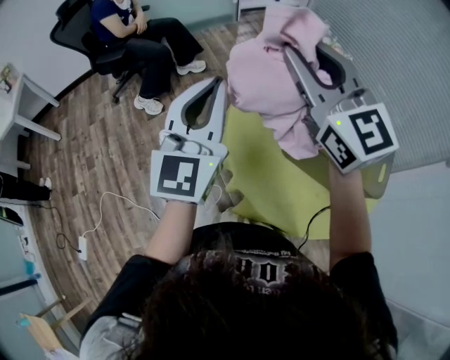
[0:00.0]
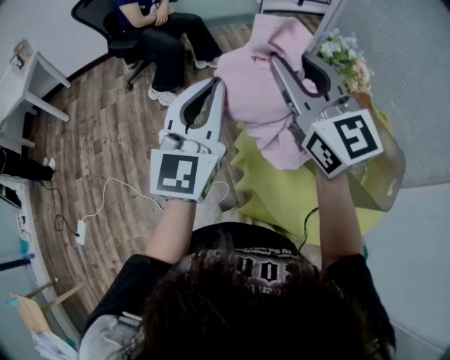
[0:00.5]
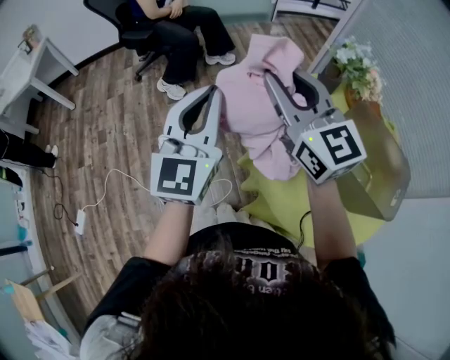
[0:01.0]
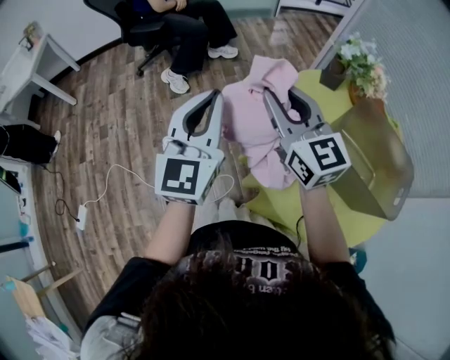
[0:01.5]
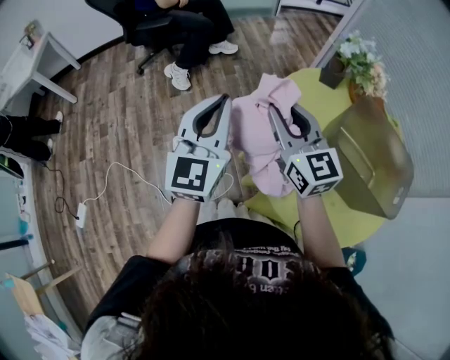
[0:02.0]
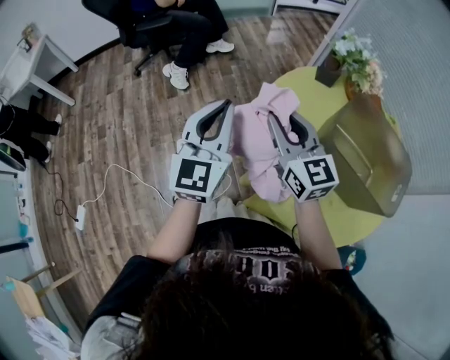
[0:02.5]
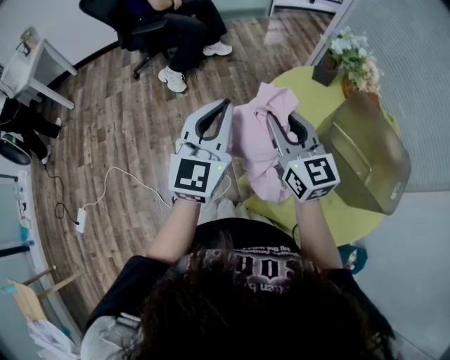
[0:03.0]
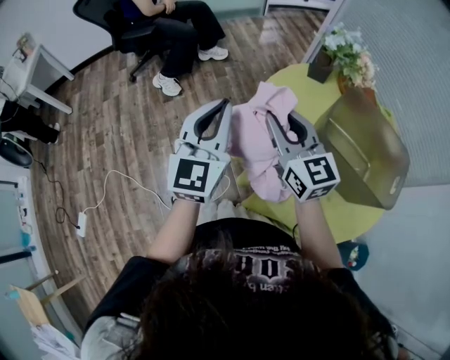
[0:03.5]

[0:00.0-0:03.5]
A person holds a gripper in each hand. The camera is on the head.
0:00.0 to 0:02.0: The left gripper goes about 15 cm downward and to the left. The right gripper goes approximately 20 cm downward and to the left.
0:02.0 to 0:03.5: There are only small adjustments of the grippers.

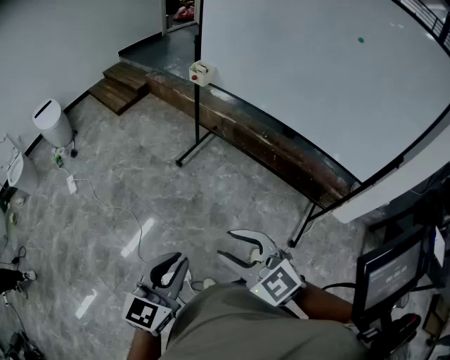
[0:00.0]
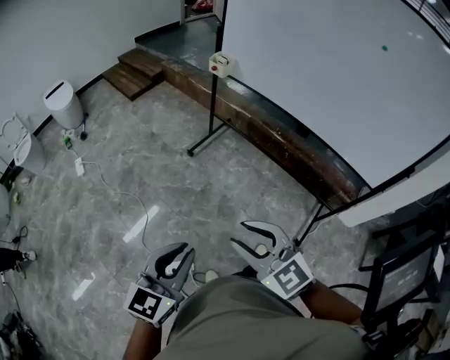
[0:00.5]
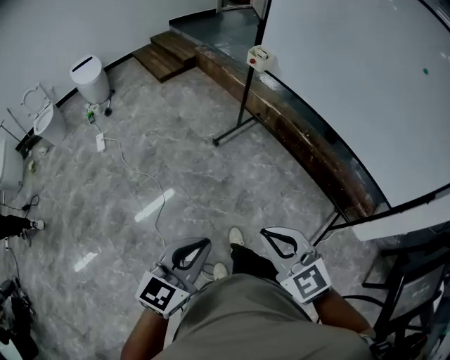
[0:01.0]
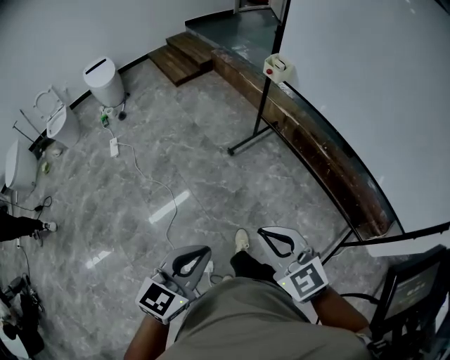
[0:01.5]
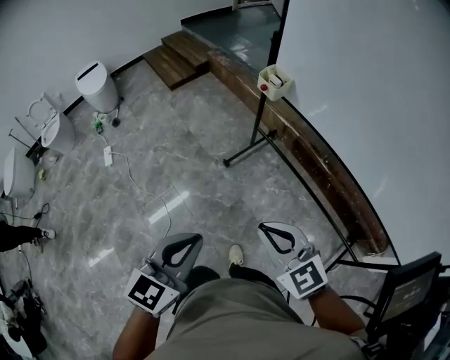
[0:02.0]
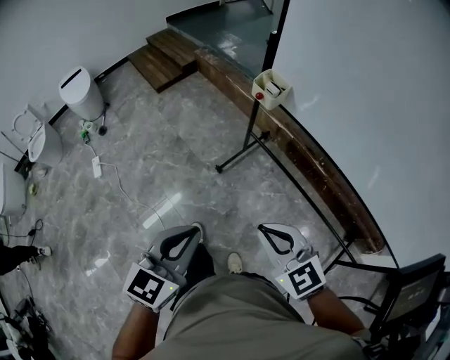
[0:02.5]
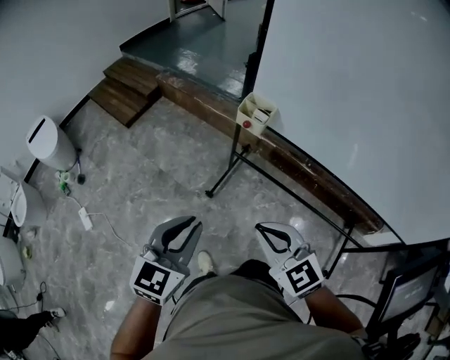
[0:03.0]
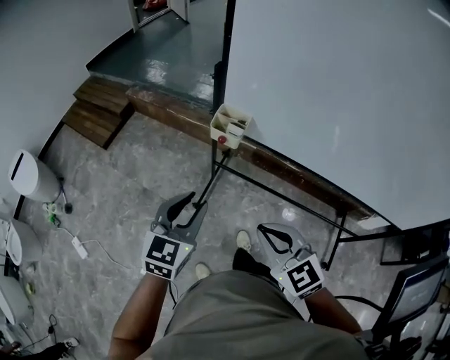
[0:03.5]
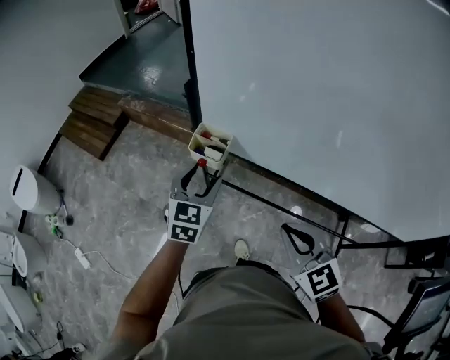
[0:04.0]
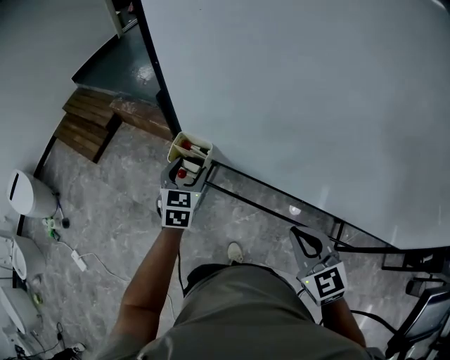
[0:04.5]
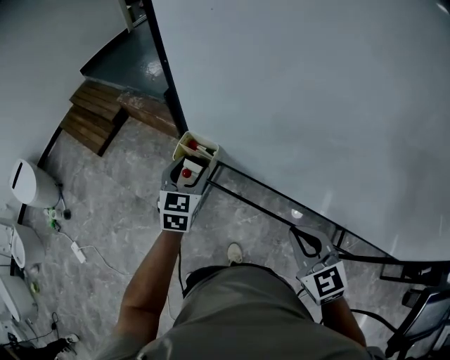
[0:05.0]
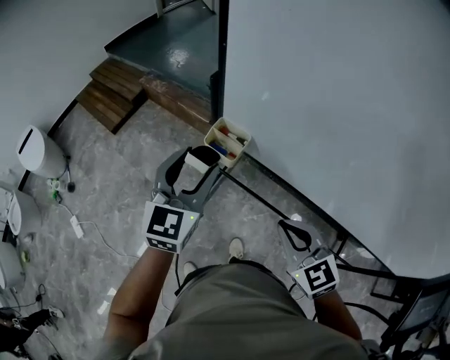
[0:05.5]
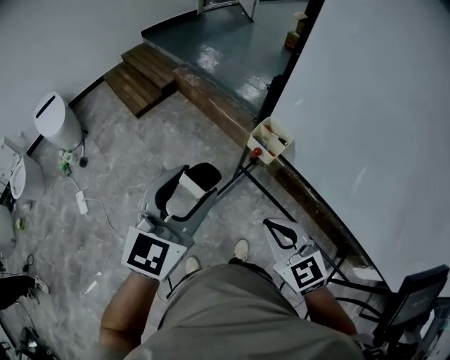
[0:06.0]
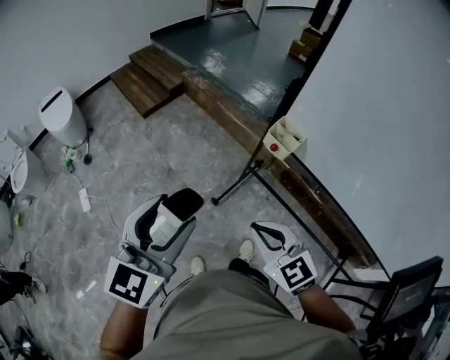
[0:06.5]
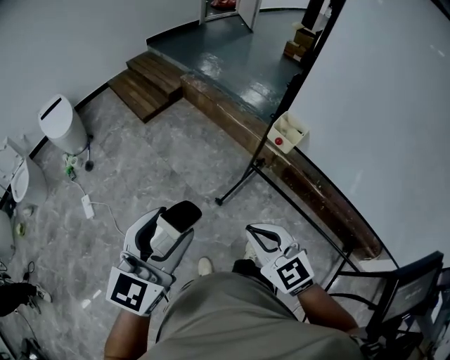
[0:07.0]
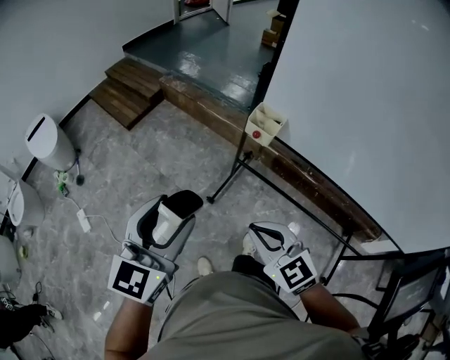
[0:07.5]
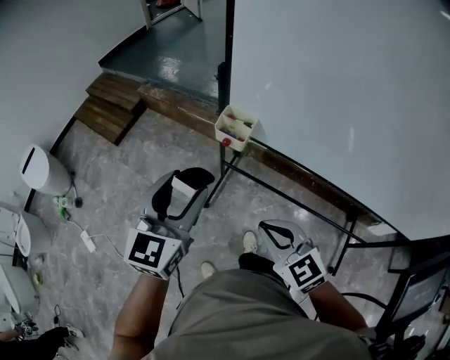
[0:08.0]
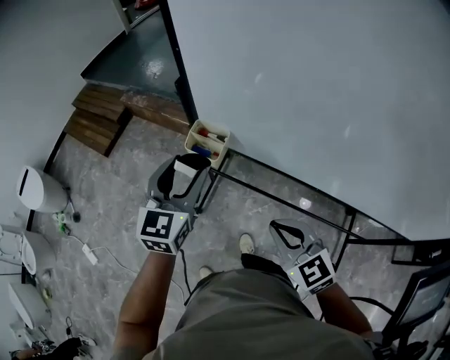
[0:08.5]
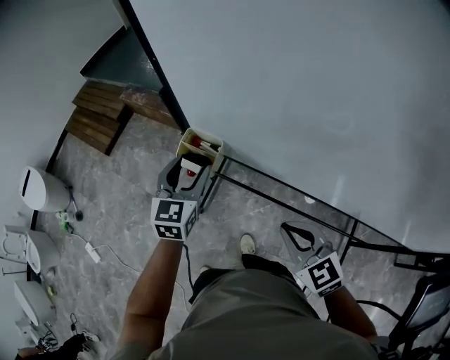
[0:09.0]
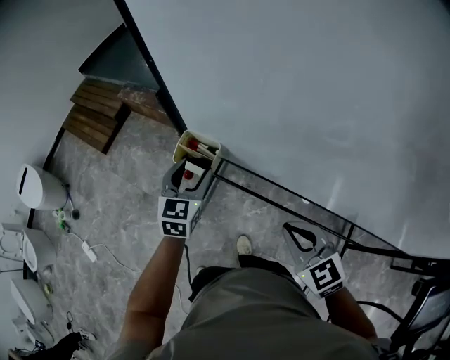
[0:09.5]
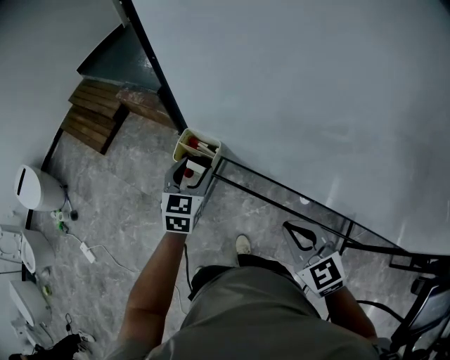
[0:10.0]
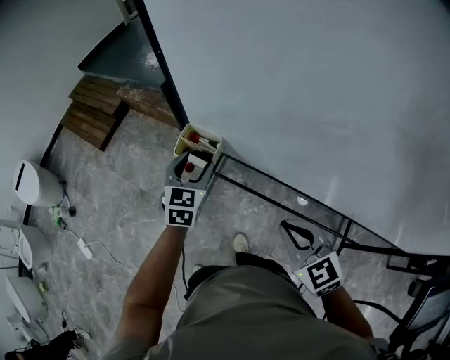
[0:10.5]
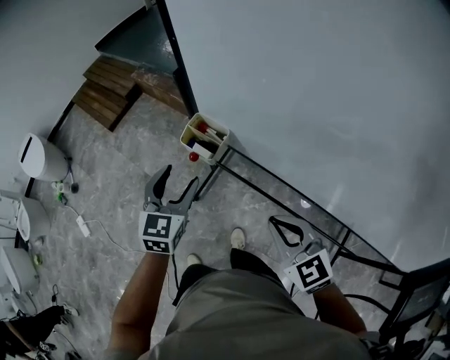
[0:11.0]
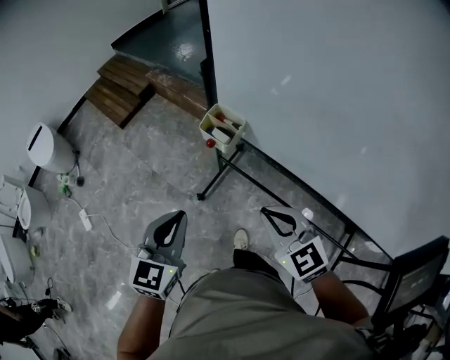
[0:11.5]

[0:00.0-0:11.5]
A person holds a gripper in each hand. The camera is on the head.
0:00.0 to 0:02.0: Both grippers travel together forward, some 30 cm. The right gripper closes up.
0:02.0 to 0:04.0: The left gripper shifts by about 60 cm, and opens up. The right gripper changes place by approximately 35 cm, and rotates roughly 40 degrees.
0:04.0 to 0:06.0: The right gripper is displaced to the left by some 15 cm, and swivels about 20 degrees; the left gripper travels to the left, upward and backward by roughly 25 cm.
0:06.0 to 0:07.5: The left gripper travels backward and to the left by about 15 cm. The right gripper heads to the left and backward, covering approximately 10 cm.
0:07.5 to 0:09.5: The right gripper travels to the right and forward by about 35 cm; the left gripper heads forward, to the right and downward, covering roughly 50 cm.
0:09.5 to 0:11.5: The right gripper moves to the left, about 10 cm; the left gripper moves backward and to the left, roughly 25 cm, and closes up.

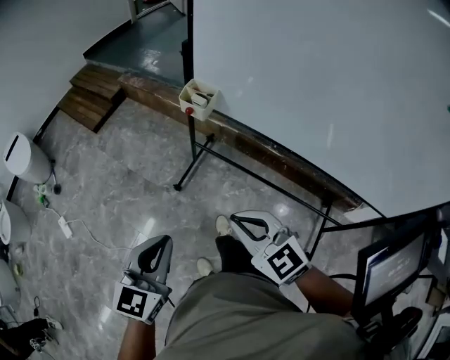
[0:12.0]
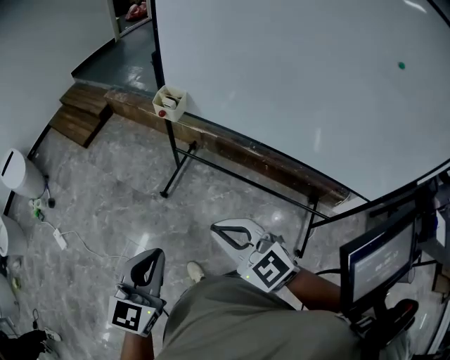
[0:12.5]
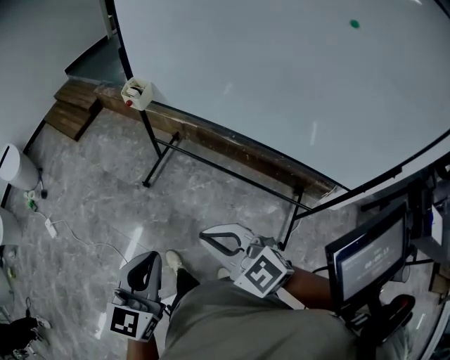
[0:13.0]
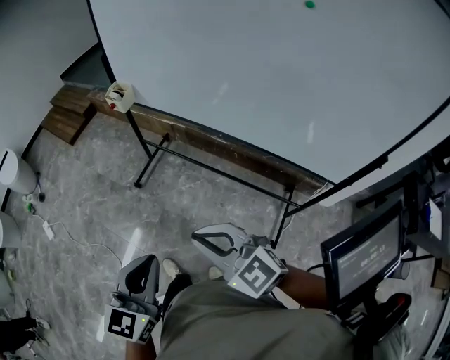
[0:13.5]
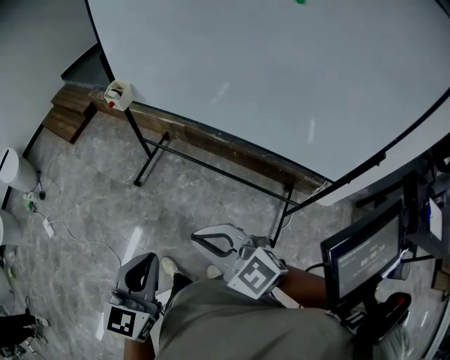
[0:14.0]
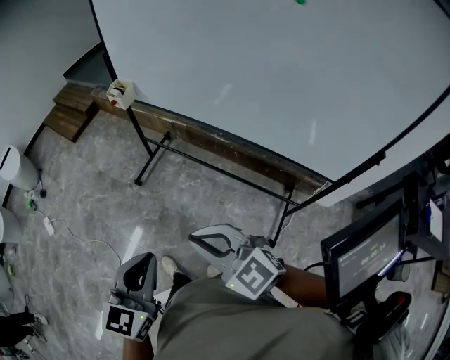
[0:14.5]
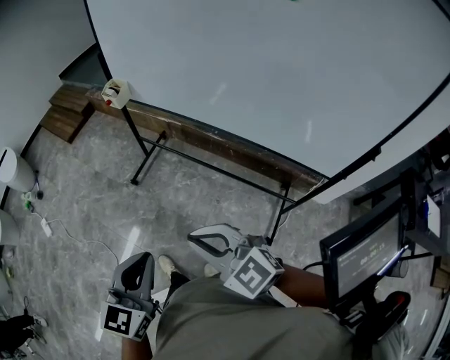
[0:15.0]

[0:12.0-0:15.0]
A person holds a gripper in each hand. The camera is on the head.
0:12.0 to 0:13.5: The two grippers go some 35 cm backward and to the right.
0:13.5 to 0:15.0: There are only small adjustments of the grippers.

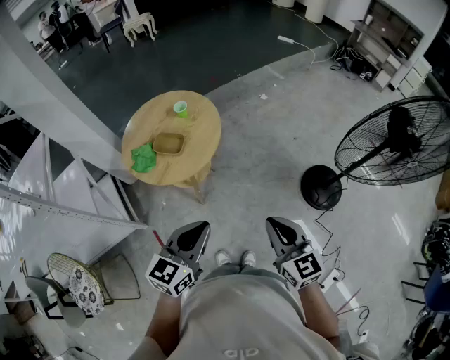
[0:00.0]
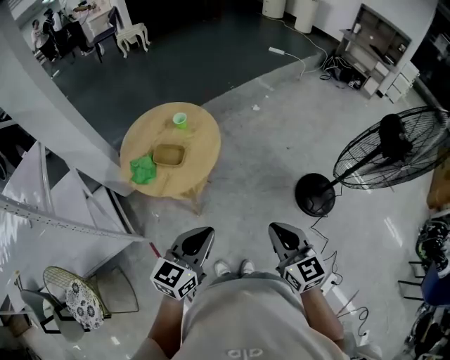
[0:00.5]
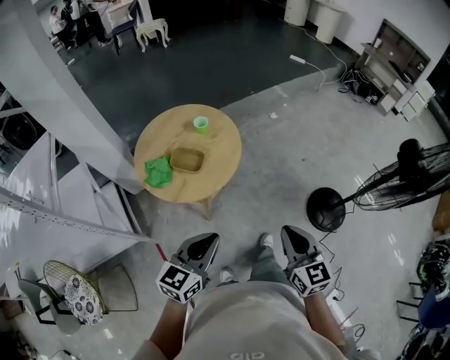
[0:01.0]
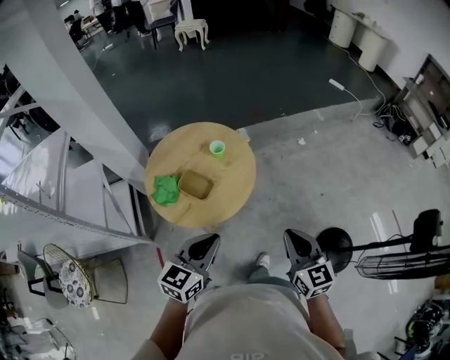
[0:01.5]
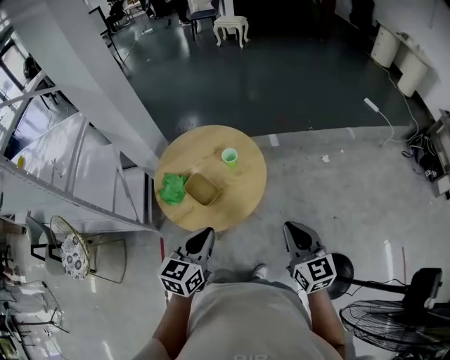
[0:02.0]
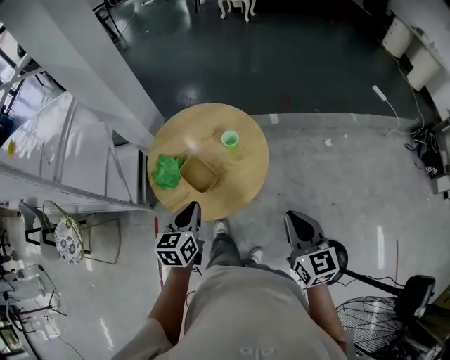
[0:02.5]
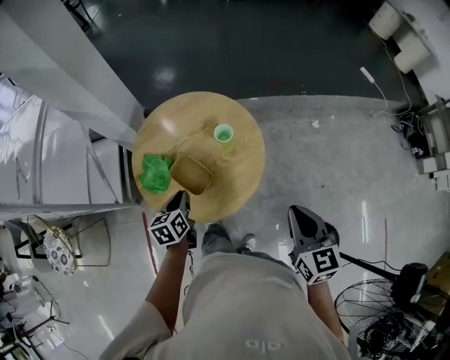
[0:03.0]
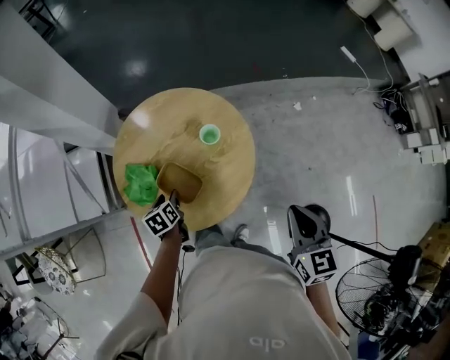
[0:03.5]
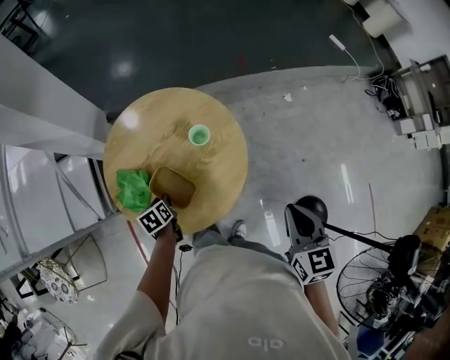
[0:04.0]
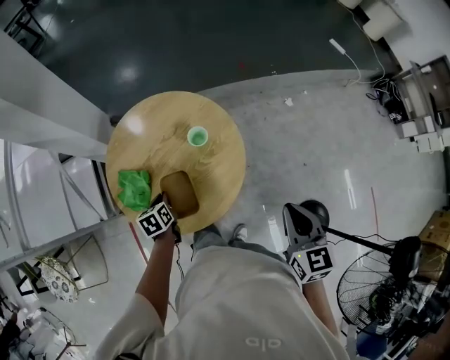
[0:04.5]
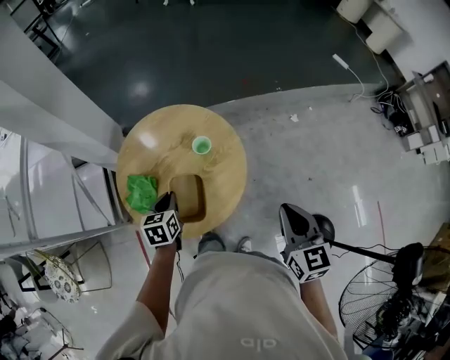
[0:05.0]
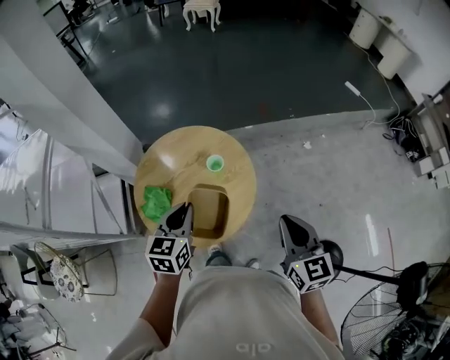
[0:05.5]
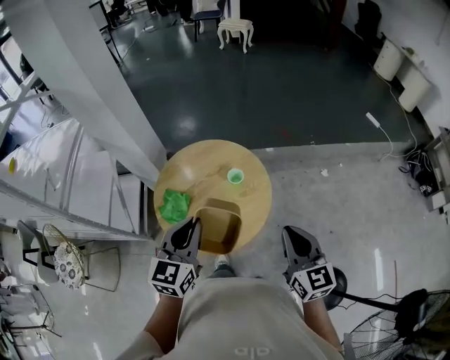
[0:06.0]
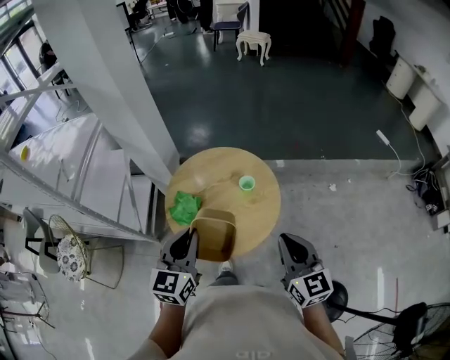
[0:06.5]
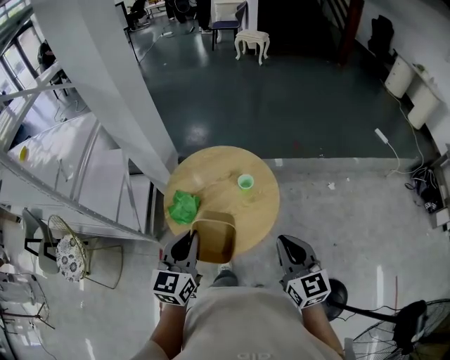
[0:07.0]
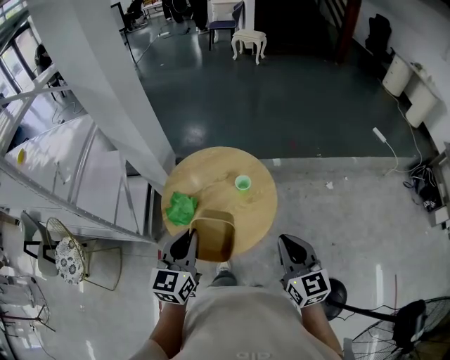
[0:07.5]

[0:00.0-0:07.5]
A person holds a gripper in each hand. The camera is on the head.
0:00.0 to 0:02.0: The left gripper ends up approximately 30 cm from where it was, and turns by about 40 degrees. The right gripper ends up some 35 cm from where it was, and changes its angle by approximately 20 degrees.
0:02.0 to 0:04.0: The right gripper shifts approximately 15 cm forward and downward, and changes its angle by roughly 30 degrees; the left gripper shifts approximately 40 cm downward, forward and to the left, points its fingers some 40 degrees further downward, and opens its fingers.
0:04.0 to 0:05.5: The left gripper is displaced upward by some 30 cm, angles its fingers upward, by some 30 degrees, and closes its fingers, while the right gripper shifts about 5 cm upward.
0:05.5 to 0:07.5: The left gripper is displaced backward, upward and to the left by approximately 15 cm. Meanwhile the right gripper travels to the left by some 5 cm.
